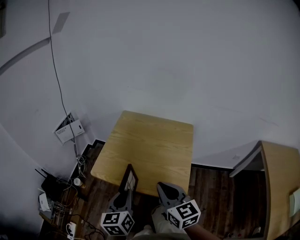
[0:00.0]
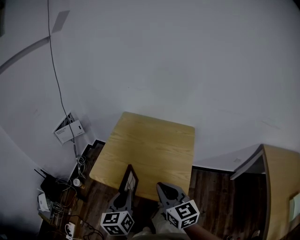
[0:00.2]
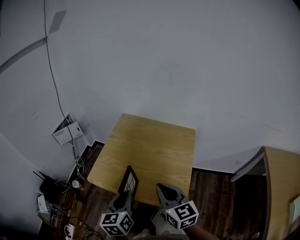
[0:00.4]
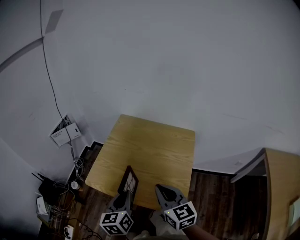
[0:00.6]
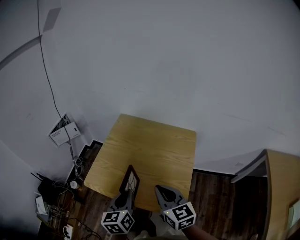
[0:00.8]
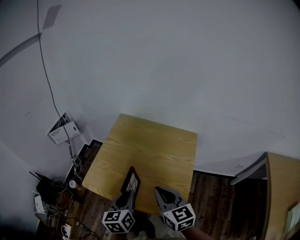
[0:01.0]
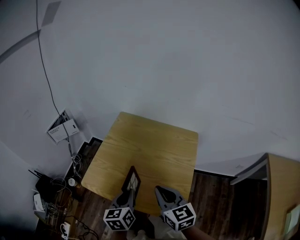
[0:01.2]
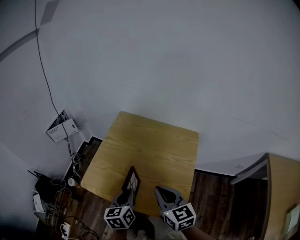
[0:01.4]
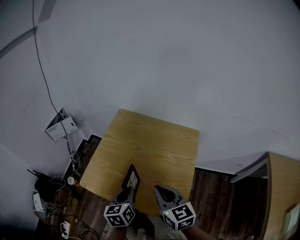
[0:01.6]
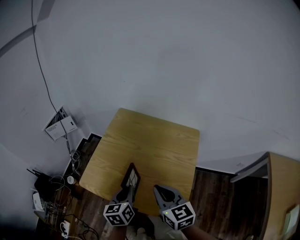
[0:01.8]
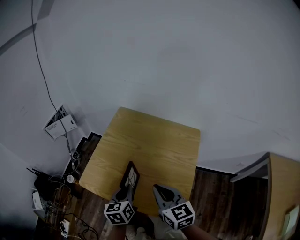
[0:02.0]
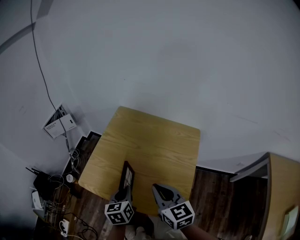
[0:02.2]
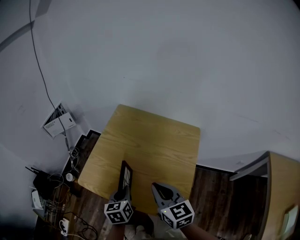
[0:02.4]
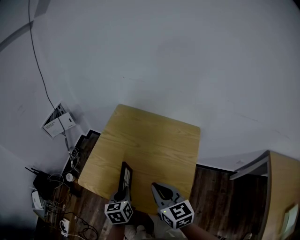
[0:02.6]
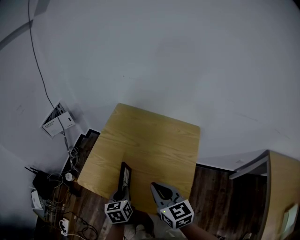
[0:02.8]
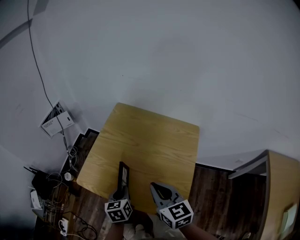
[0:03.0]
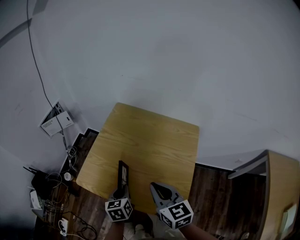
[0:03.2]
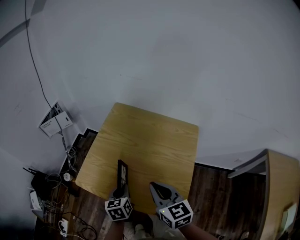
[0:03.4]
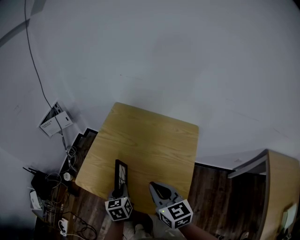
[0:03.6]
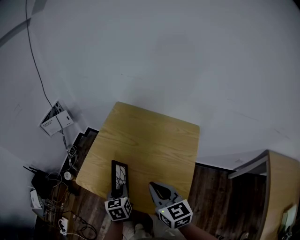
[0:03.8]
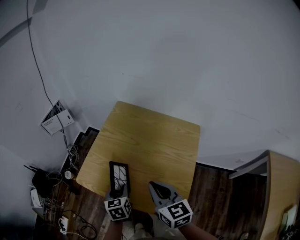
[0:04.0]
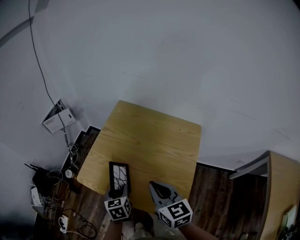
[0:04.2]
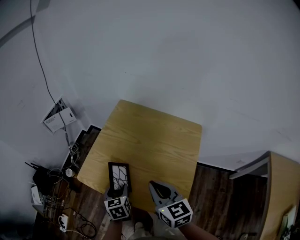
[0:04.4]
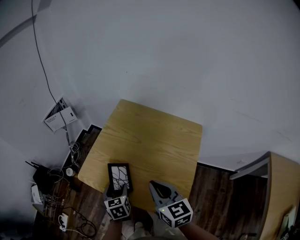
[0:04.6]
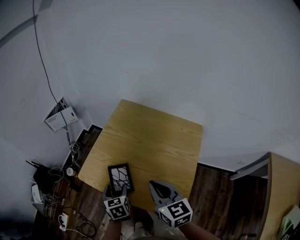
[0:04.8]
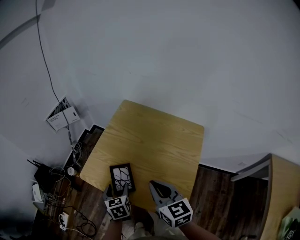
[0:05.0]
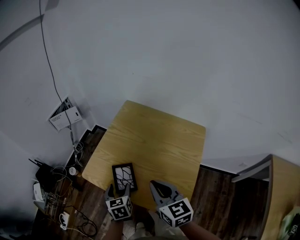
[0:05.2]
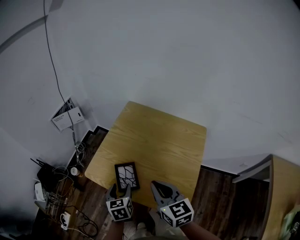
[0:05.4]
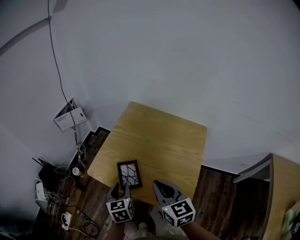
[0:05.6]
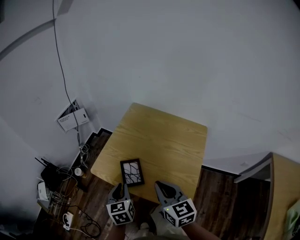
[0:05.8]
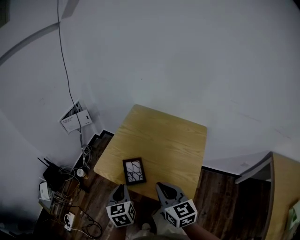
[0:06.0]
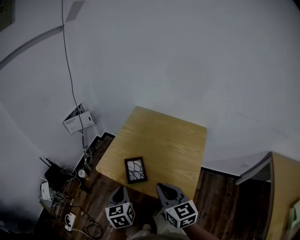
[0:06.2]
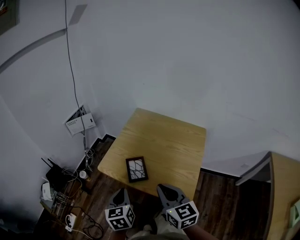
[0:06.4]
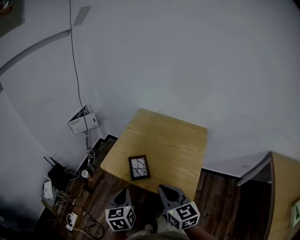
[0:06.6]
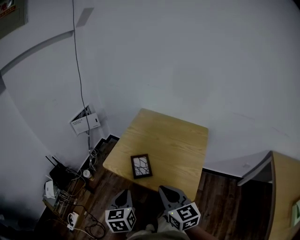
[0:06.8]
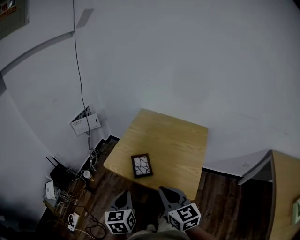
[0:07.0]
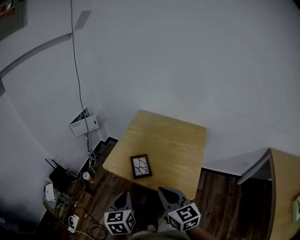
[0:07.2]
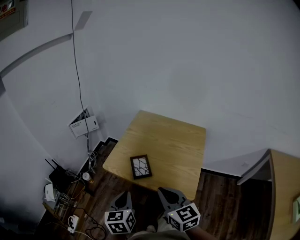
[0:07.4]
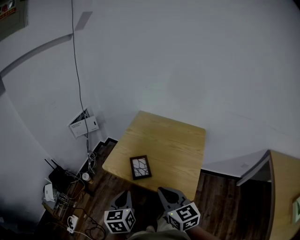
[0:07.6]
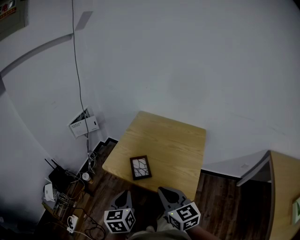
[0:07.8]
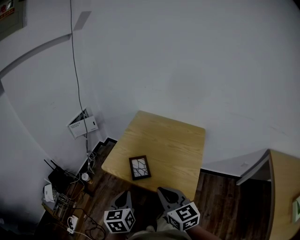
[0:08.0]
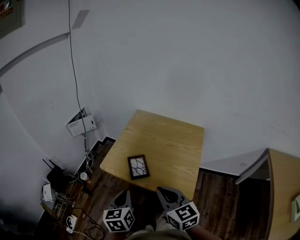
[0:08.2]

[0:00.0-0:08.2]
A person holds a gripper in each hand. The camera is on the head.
0:00.0 to 0:01.6: The left gripper heads forward, downward and to the right, covering some 20 cm, while the right gripper is displaced forward and downward by roughly 15 cm.
0:01.6 to 0:03.2: The left gripper goes roughly 5 cm downward.
0:03.2 to 0:05.0: The left gripper changes place by some 5 cm, and opens its fingers.
0:05.0 to 0:06.6: The right gripper heads backward and to the left, covering some 15 cm; the left gripper goes roughly 20 cm upward, backward and to the left, and closes its fingers.
0:06.6 to 0:08.2: The grippers move only a little.

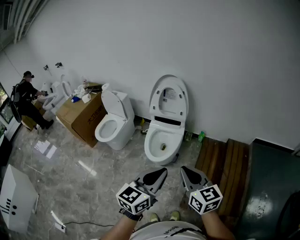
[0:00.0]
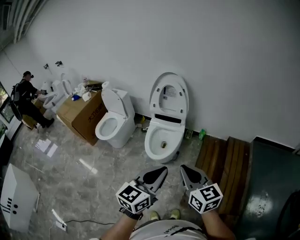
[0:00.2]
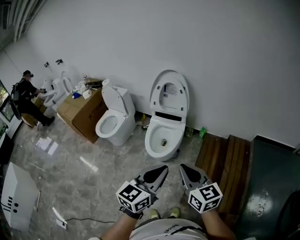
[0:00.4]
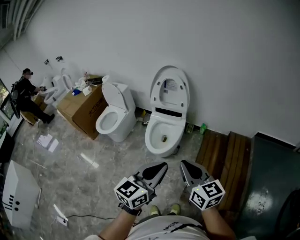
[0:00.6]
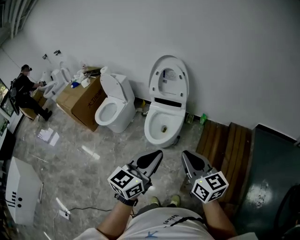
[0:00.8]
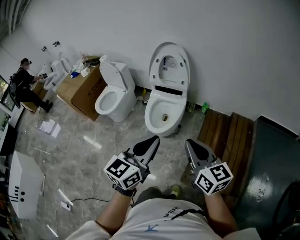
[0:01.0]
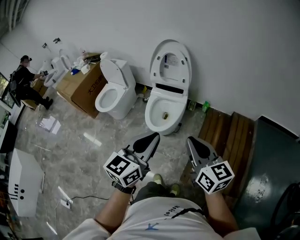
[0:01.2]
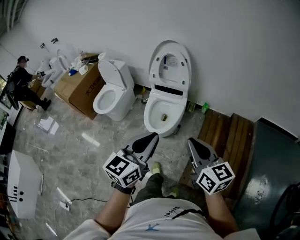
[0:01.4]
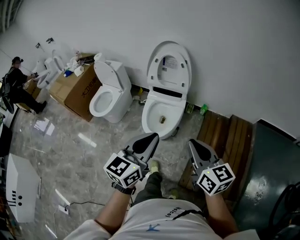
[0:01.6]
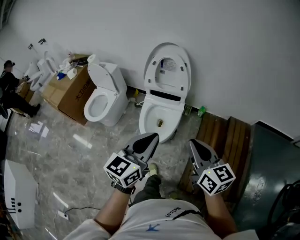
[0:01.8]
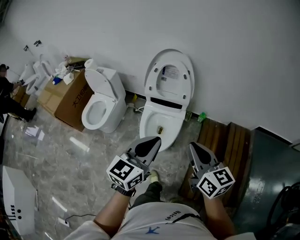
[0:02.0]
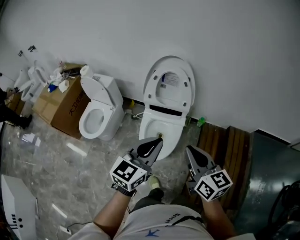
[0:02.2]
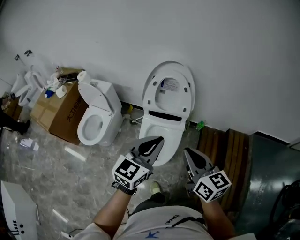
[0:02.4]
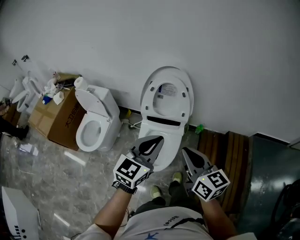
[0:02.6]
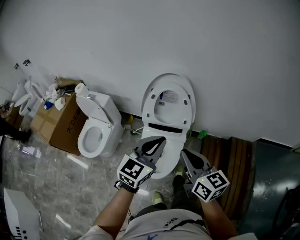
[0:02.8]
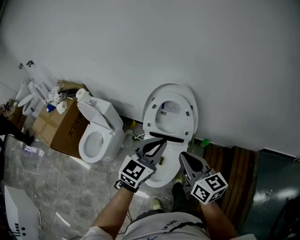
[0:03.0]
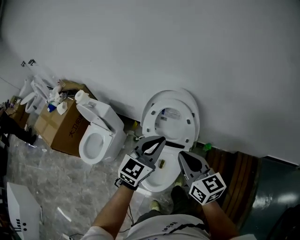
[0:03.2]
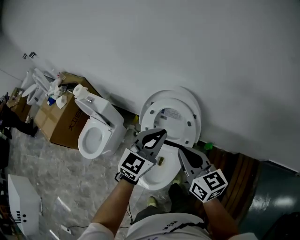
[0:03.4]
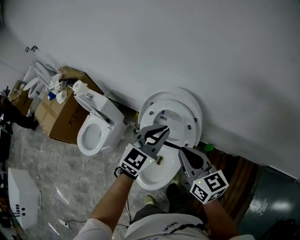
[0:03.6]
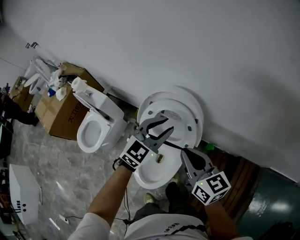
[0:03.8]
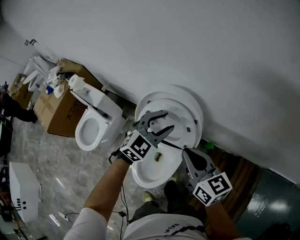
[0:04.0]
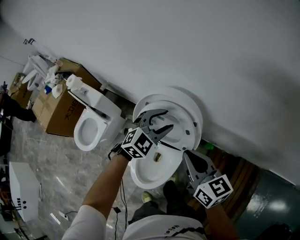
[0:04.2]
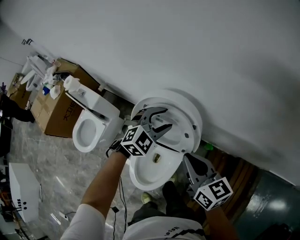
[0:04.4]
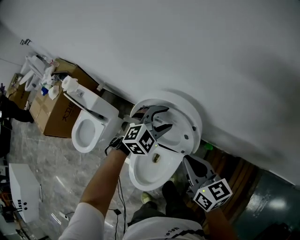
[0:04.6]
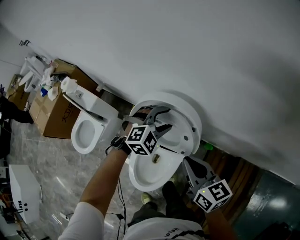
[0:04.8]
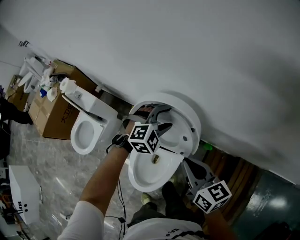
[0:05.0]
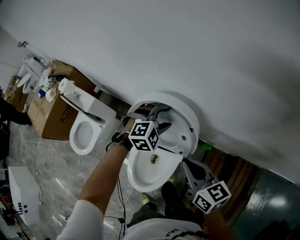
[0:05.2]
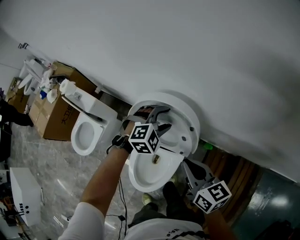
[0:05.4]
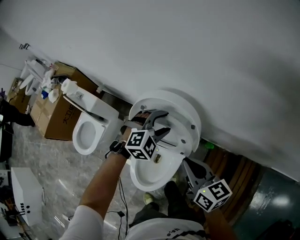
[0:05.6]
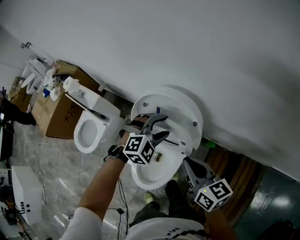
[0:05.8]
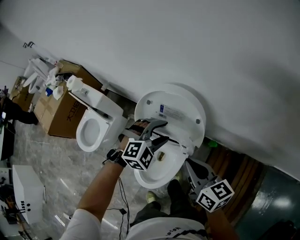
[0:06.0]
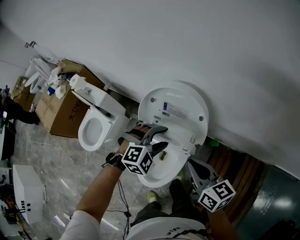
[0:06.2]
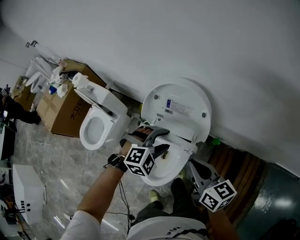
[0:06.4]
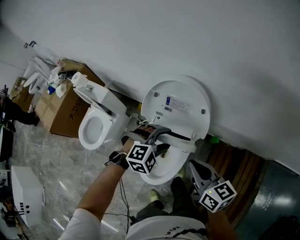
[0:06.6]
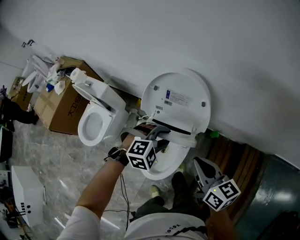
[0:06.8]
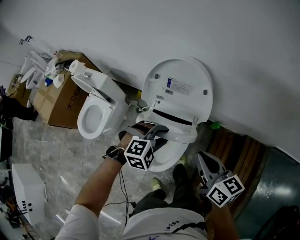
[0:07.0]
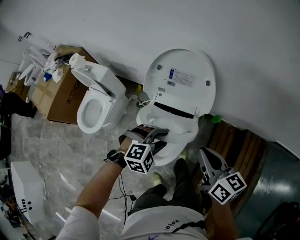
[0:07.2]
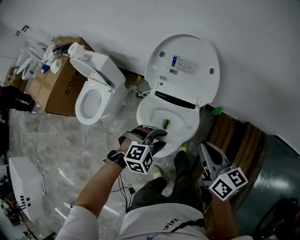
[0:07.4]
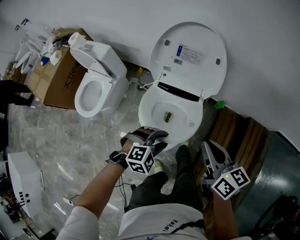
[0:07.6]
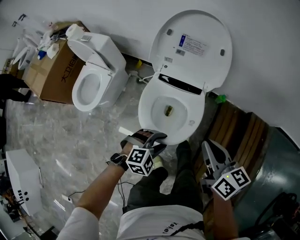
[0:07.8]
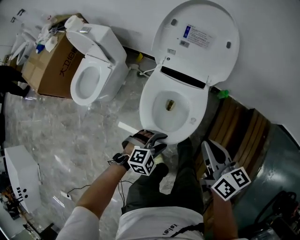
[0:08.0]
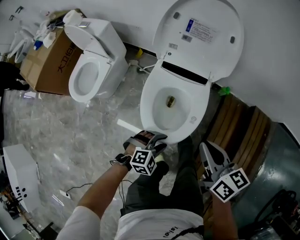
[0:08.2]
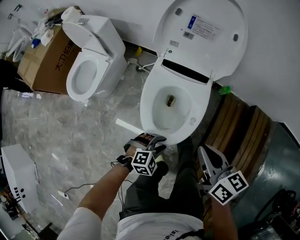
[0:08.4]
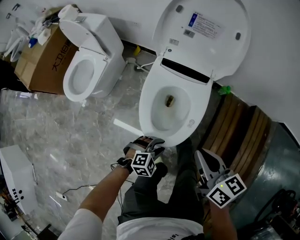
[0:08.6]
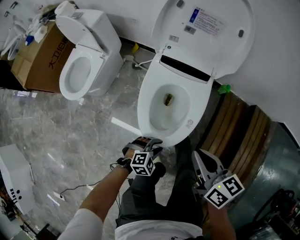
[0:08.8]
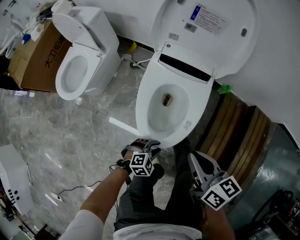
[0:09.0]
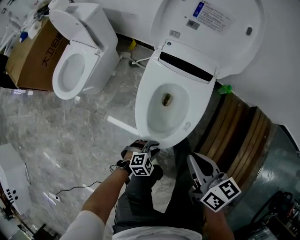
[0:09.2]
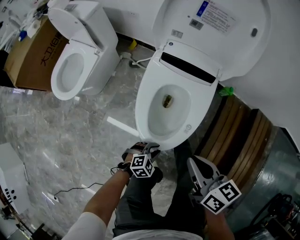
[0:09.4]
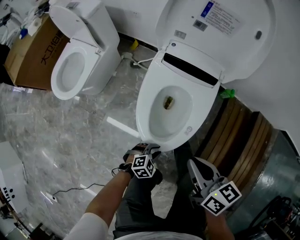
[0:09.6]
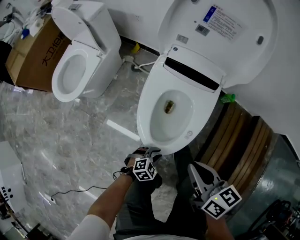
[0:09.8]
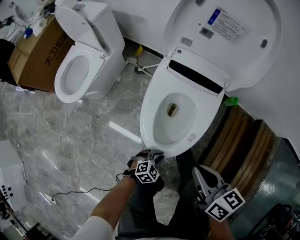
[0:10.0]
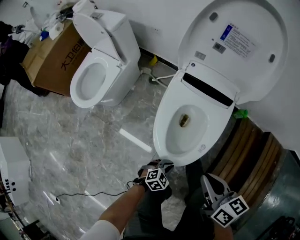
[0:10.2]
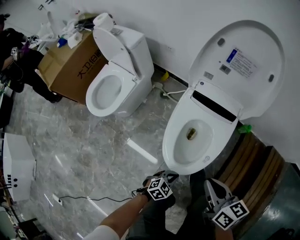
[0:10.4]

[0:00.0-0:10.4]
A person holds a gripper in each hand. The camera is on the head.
0:00.0 to 0:01.4: The two grippers go about 5 cm forward.
0:01.4 to 0:03.0: Both grippers are carried forward, about 40 cm.
0:03.0 to 0:04.4: The right gripper is displaced forward by some 25 cm. Meanwhile the left gripper moves forward and downward, about 35 cm, rotates roughly 30 degrees, and opens its fingers.
0:04.4 to 0:06.0: The right gripper changes place by about 5 cm. The left gripper travels backward by roughly 10 cm.
0:06.0 to 0:07.4: The left gripper goes some 25 cm backward, and closes up. Meanwhile the right gripper goes some 15 cm backward.
0:07.4 to 0:09.0: The right gripper is displaced downward and backward by about 25 cm, while the left gripper heads downward and backward, covering some 35 cm.
0:09.0 to 0:10.4: The left gripper moves some 10 cm downward and comes back, swivels about 30 degrees, and closes its fingers.

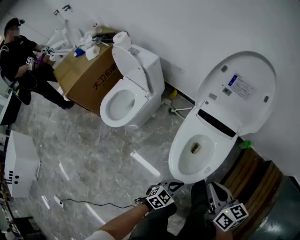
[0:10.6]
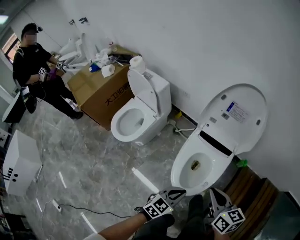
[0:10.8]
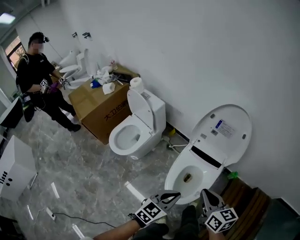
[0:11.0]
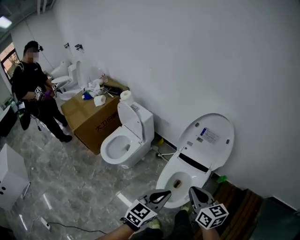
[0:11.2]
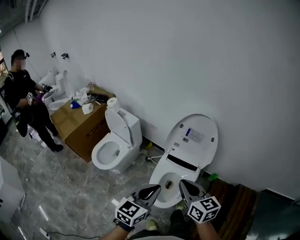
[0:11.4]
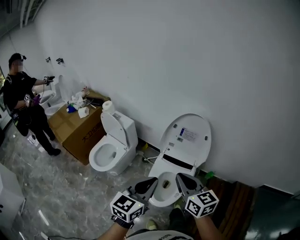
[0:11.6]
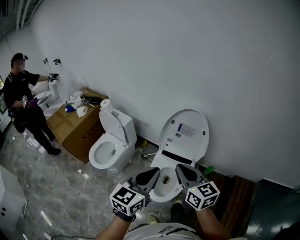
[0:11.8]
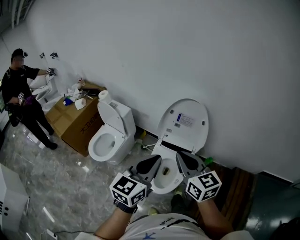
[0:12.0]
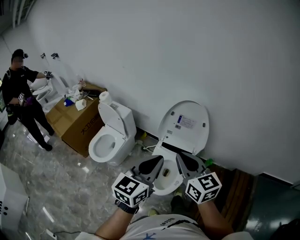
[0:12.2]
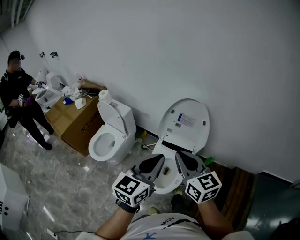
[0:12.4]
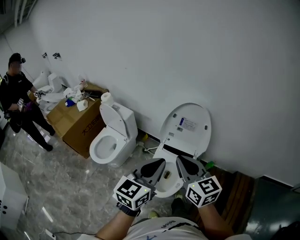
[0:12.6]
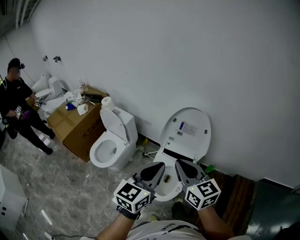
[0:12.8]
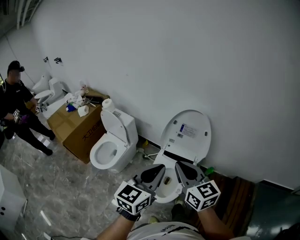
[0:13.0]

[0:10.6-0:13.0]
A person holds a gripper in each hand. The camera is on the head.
0:10.6 to 0:11.8: The right gripper heads upward, covering roughly 30 cm, and swivels about 30 degrees, while the left gripper goes roughly 50 cm upward, and tips its fingers upward by approximately 30 degrees.
0:11.8 to 0:13.0: There are only small adjustments of the grippers.

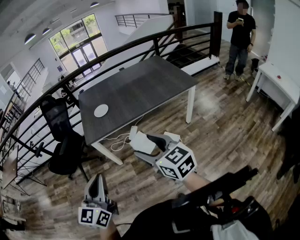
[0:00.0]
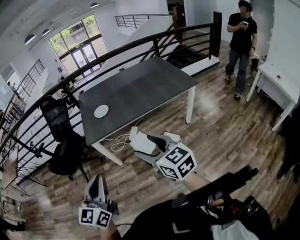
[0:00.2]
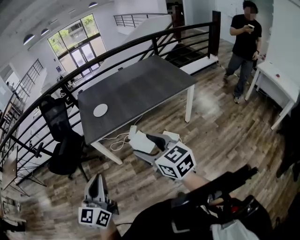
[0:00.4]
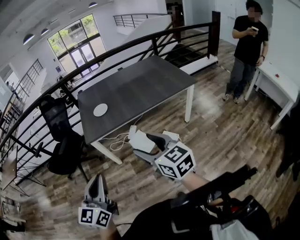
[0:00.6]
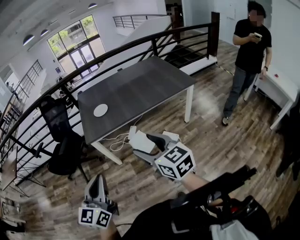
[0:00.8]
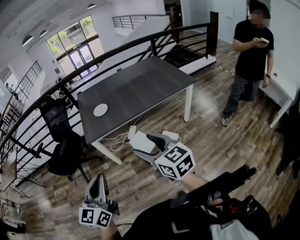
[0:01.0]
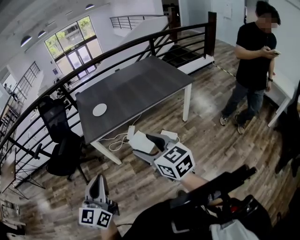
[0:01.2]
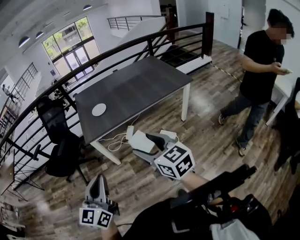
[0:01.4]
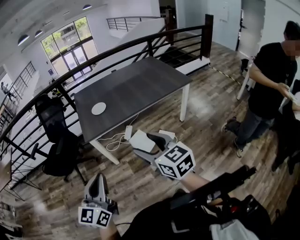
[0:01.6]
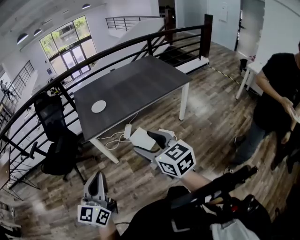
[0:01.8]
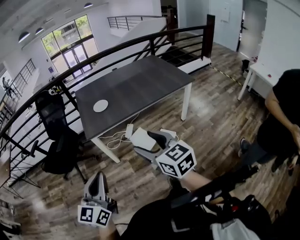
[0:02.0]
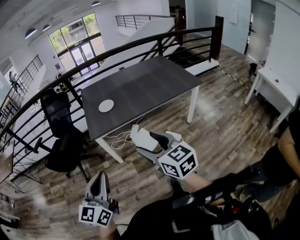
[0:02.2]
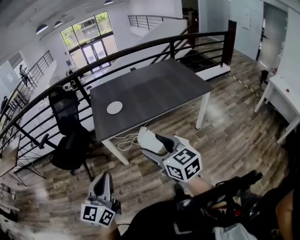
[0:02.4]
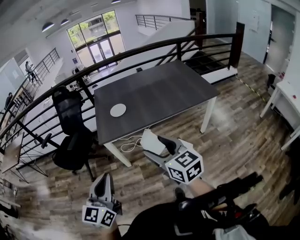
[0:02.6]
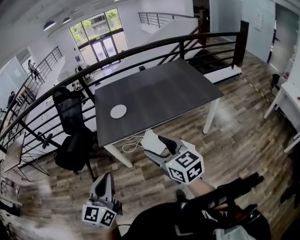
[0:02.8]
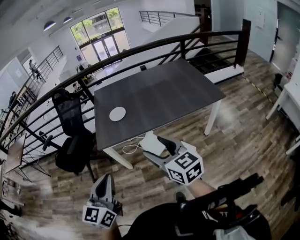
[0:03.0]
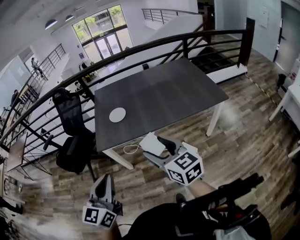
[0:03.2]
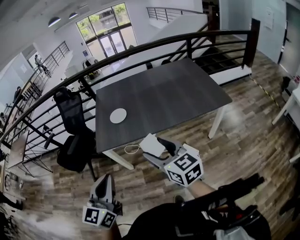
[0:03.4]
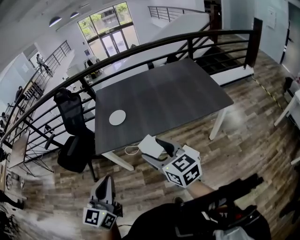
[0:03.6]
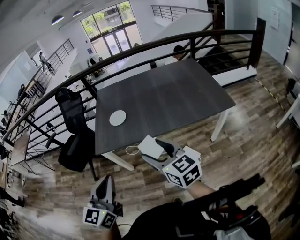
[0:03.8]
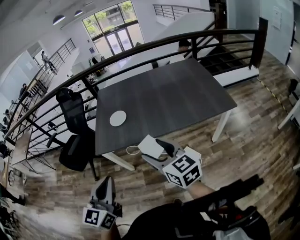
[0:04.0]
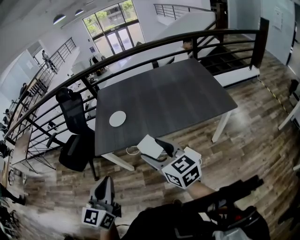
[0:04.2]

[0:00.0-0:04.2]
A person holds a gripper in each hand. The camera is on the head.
0:00.0 to 0:01.4: Both grippers travel together to the left, about 10 cm.
0:01.4 to 0:02.8: The left gripper shifts approximately 15 cm forward and to the right. Meanwhile the right gripper moves forward, approximately 15 cm.
0:02.8 to 0:04.2: The left gripper travels to the right and forward by approximately 15 cm; the right gripper heads forward and to the right, covering roughly 15 cm.
